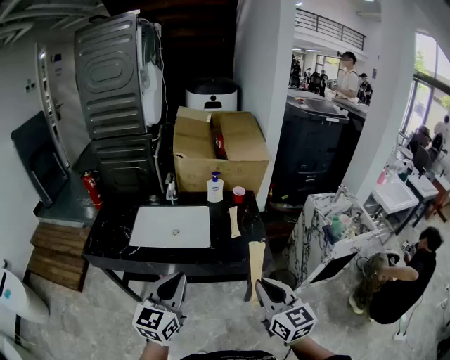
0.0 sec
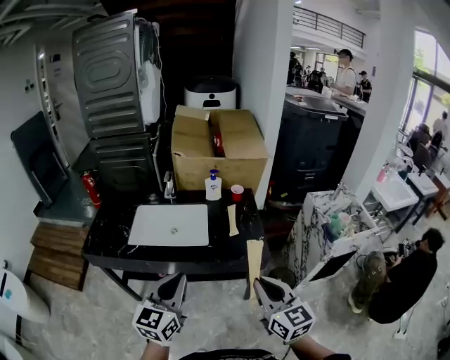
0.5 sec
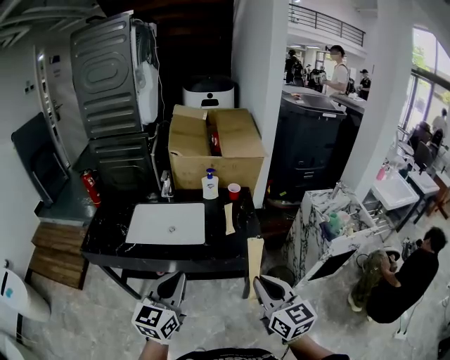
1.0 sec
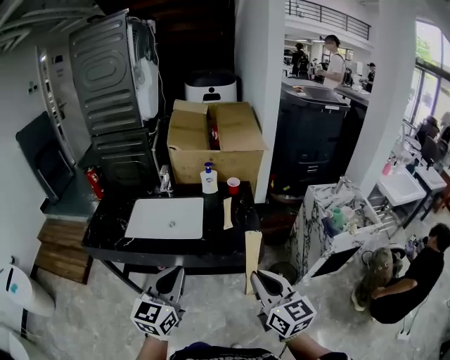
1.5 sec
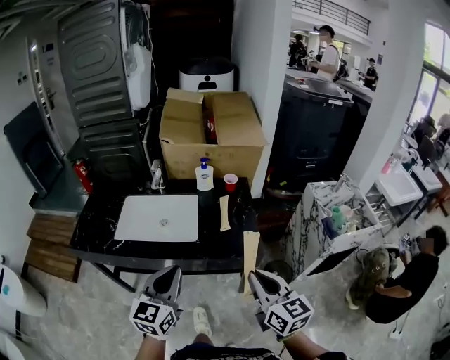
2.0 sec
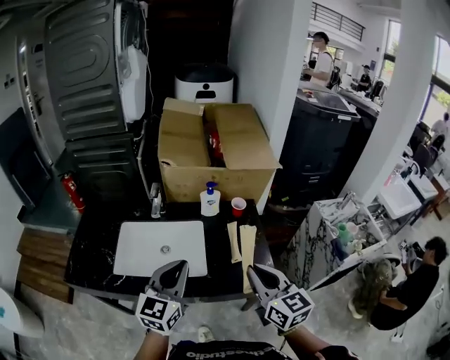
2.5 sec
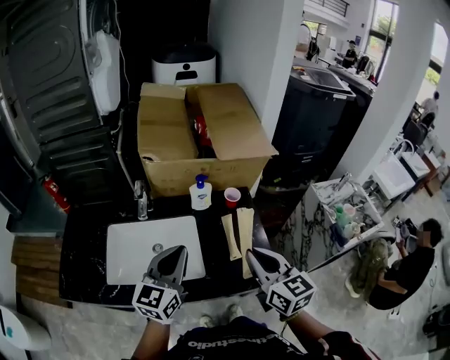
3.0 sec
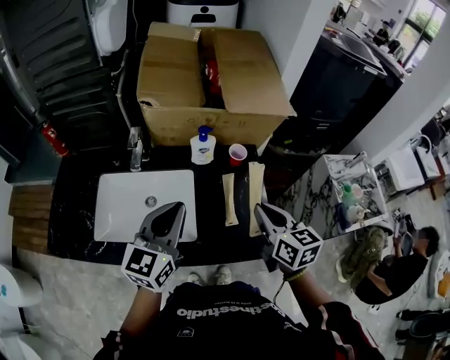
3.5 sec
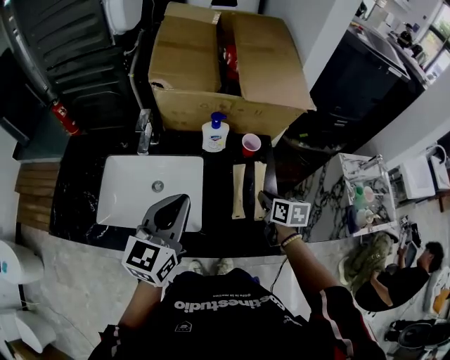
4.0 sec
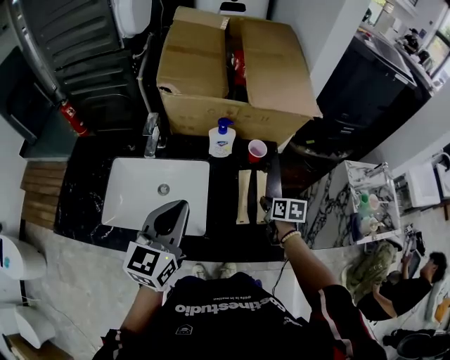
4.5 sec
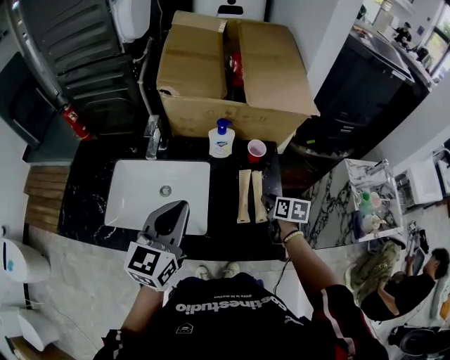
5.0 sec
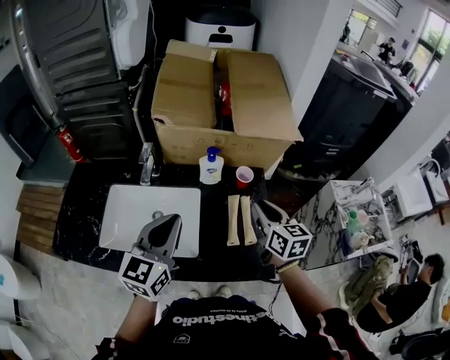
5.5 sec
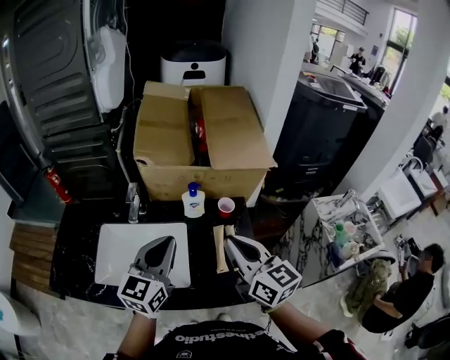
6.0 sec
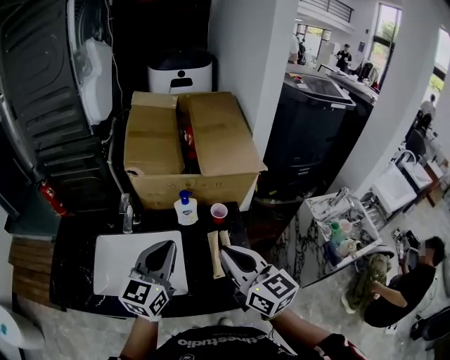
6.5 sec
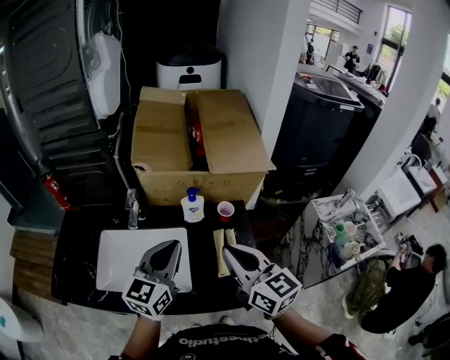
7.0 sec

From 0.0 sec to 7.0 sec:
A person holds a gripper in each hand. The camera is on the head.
From 0.0 sec to 2.0 sec: The right gripper shifts roughly 5 cm forward, while the left gripper moves forward and to the right, roughly 10 cm.
From 2.0 sec to 3.5 sec: The two grippers go approximately 30 cm forward.
From 3.5 sec to 5.0 sec: The right gripper shifts roughly 20 cm downward and forward, rotates about 30 degrees, and opens up.
From 5.0 sec to 7.0 sec: The right gripper travels upward by roughly 30 cm, tilts its fingers roughly 40 degrees upward, and closes. Meanwhile the left gripper shifts by roughly 5 cm.

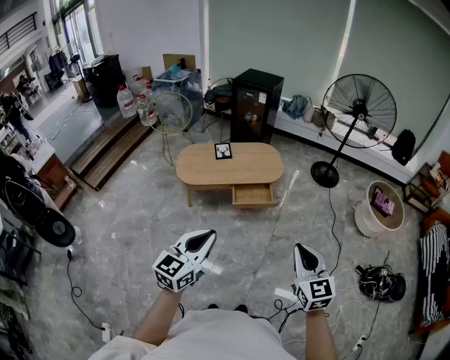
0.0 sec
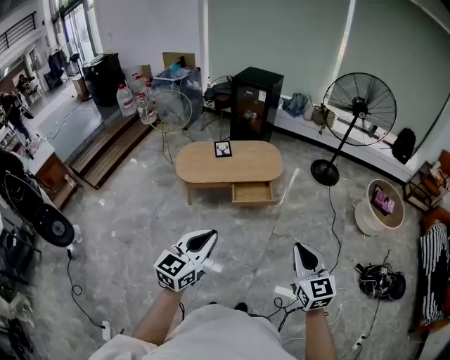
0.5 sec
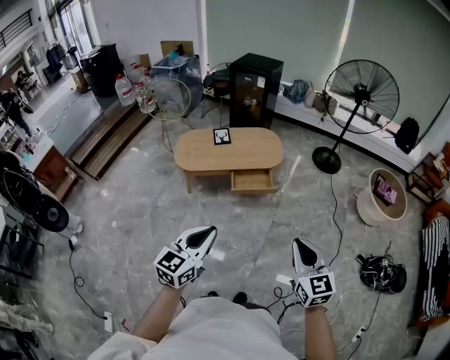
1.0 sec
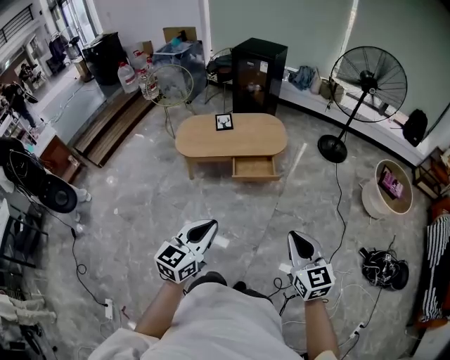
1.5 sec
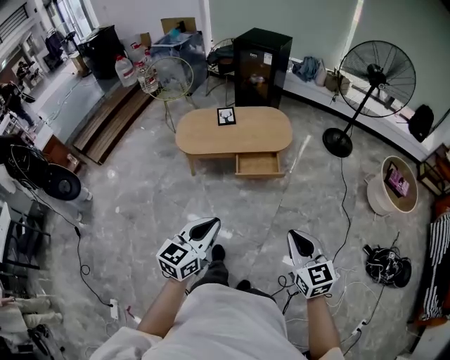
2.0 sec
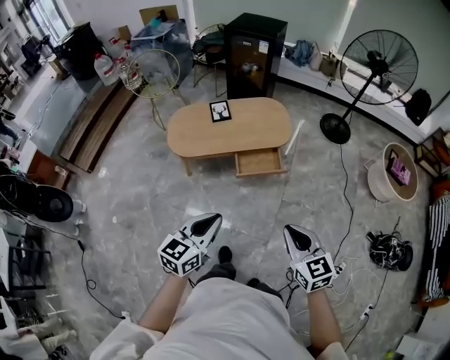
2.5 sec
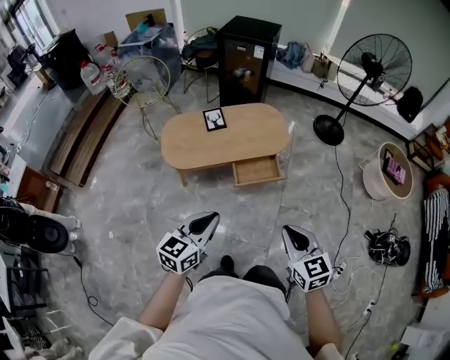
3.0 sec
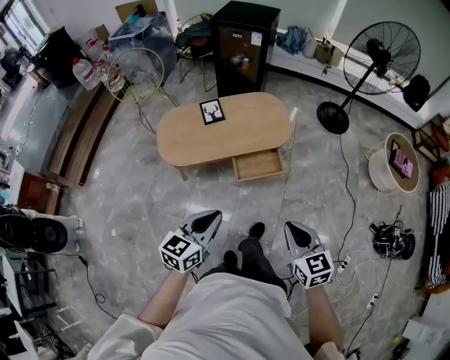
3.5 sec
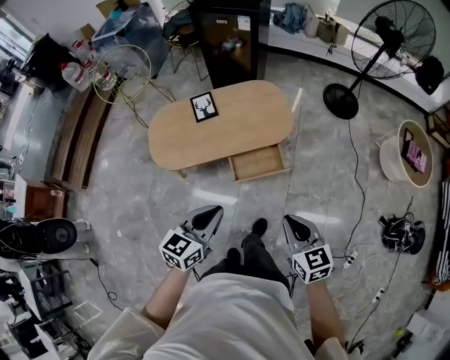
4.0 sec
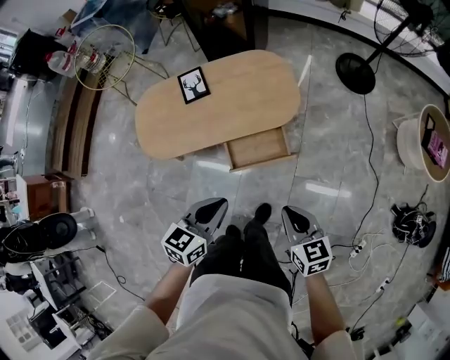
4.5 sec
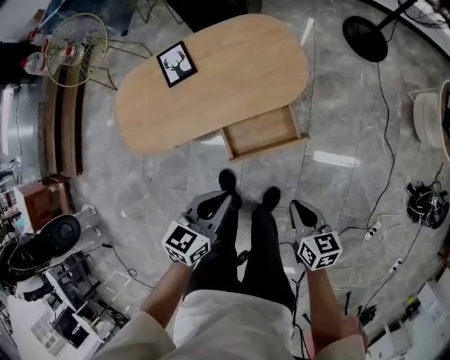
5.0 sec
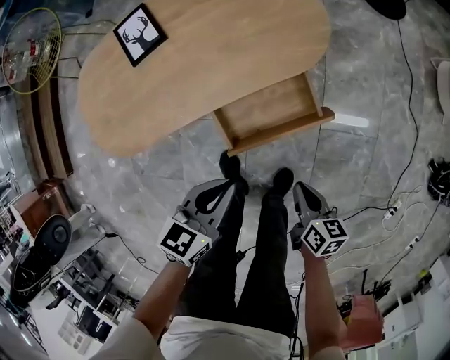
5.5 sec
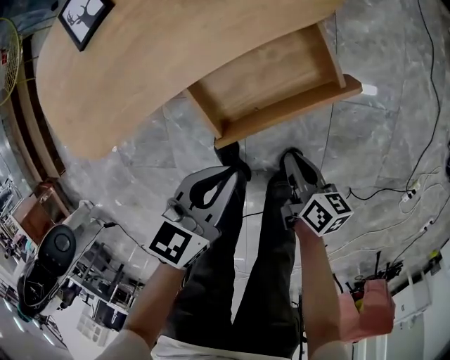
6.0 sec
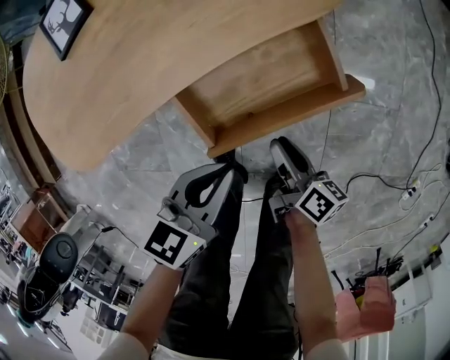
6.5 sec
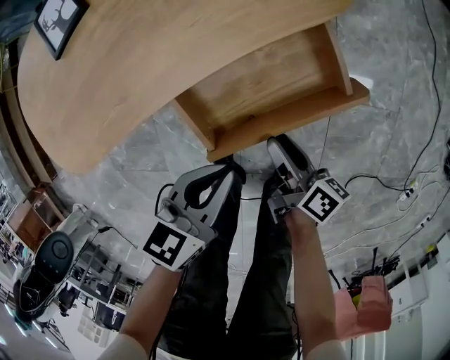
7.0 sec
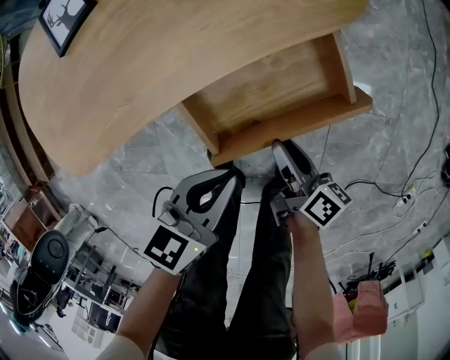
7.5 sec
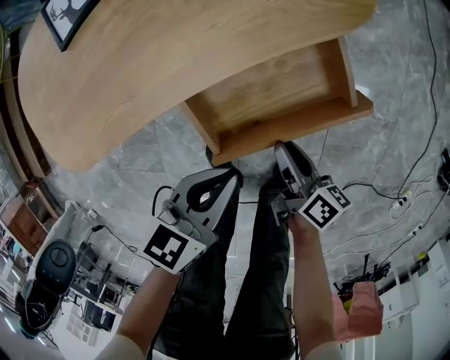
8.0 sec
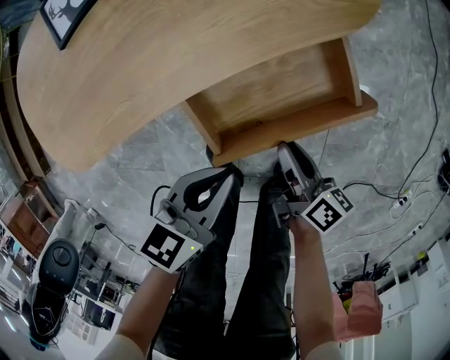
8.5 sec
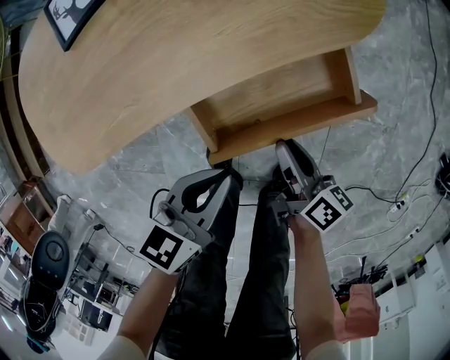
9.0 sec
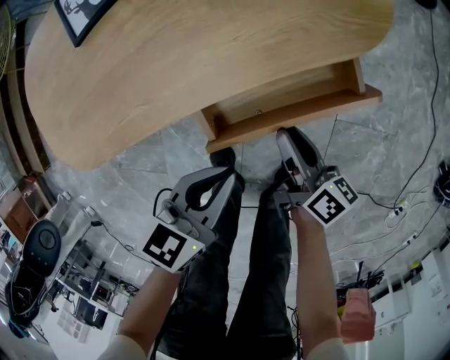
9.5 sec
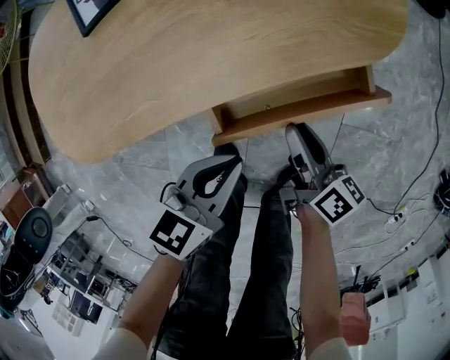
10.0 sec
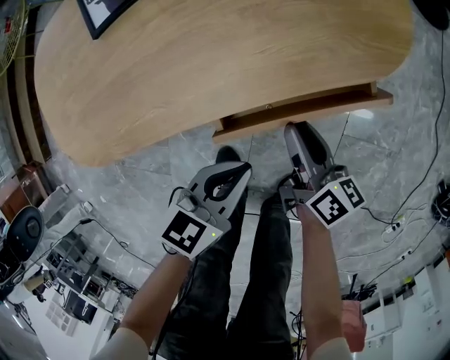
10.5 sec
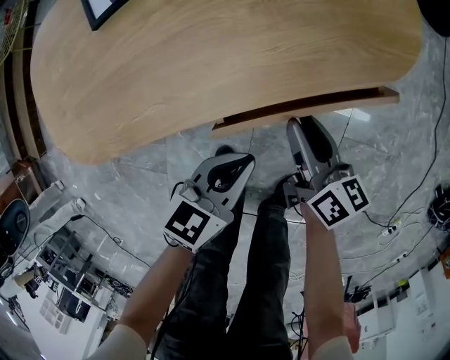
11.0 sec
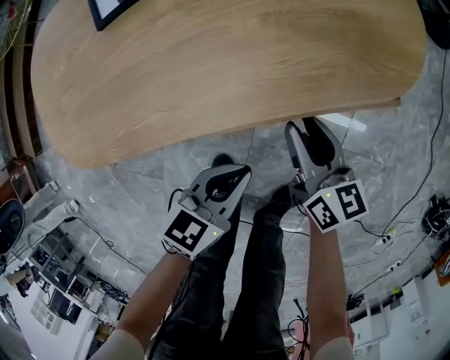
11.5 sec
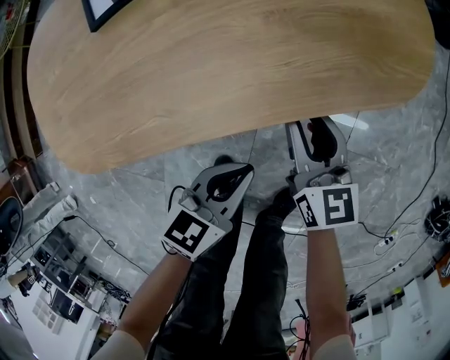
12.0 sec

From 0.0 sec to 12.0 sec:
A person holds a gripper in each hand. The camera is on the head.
From 0.0 sec to 2.0 sec: Both grippers travel together downward, roughly 10 cm.
From 2.0 sec to 4.0 sec: The grippers both shift forward and downward by approximately 35 cm.
From 4.0 sec to 6.0 sec: Both grippers move downward, approximately 50 cm. The left gripper swivels roughly 20 degrees; the right gripper twists roughly 50 degrees clockwise, seen from behind.
From 6.0 sec to 8.0 sec: The right gripper shifts some 5 cm forward.
From 8.0 sec to 10.0 sec: The left gripper changes place by approximately 5 cm. Meanwhile the right gripper heads forward, covering approximately 10 cm.
From 10.0 sec to 12.0 sec: The left gripper moves downward, approximately 5 cm. Meanwhile the right gripper travels forward and to the left by some 10 cm, and rotates around the line of its fingers by some 50 degrees, counterclockwise from behind.

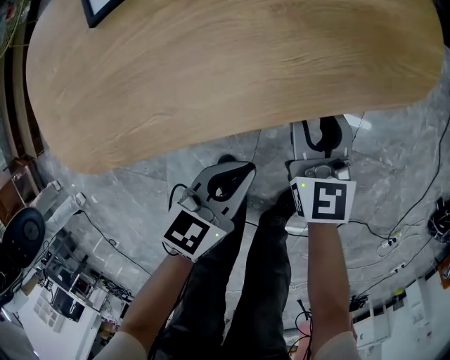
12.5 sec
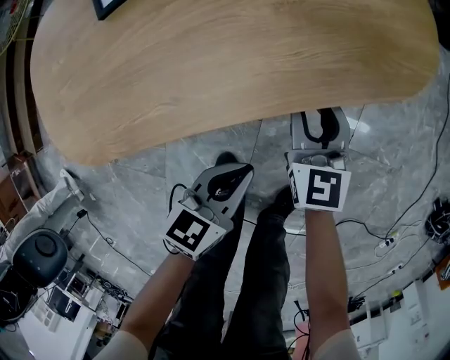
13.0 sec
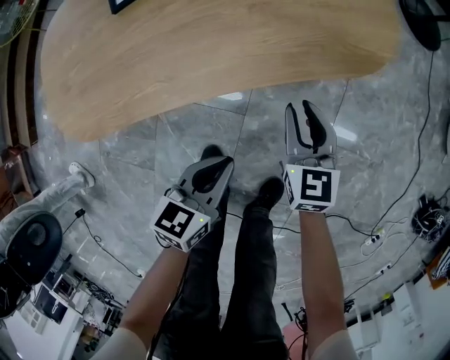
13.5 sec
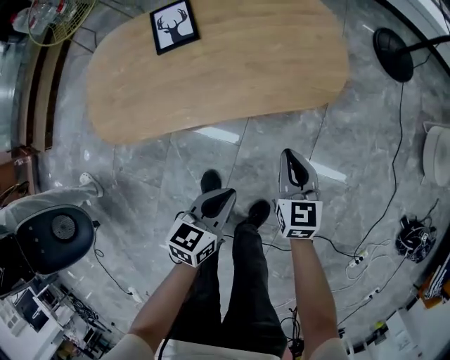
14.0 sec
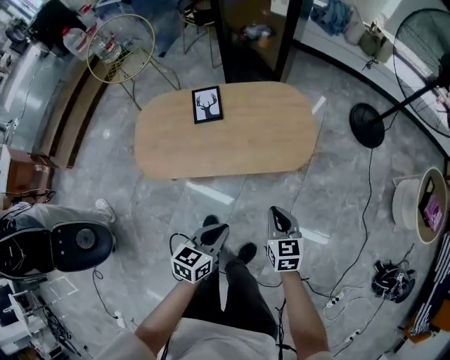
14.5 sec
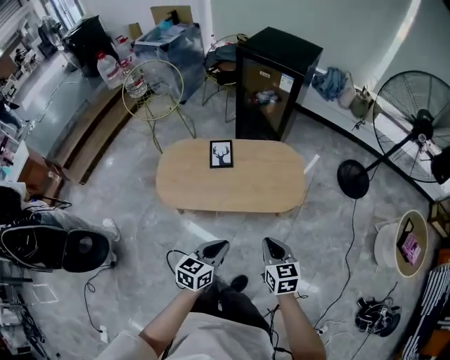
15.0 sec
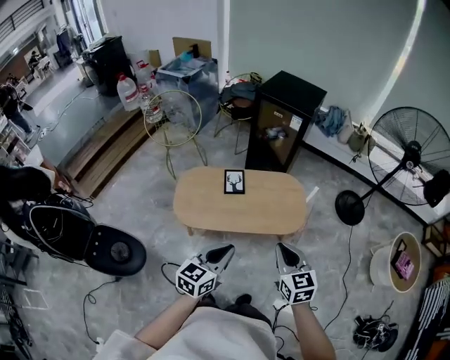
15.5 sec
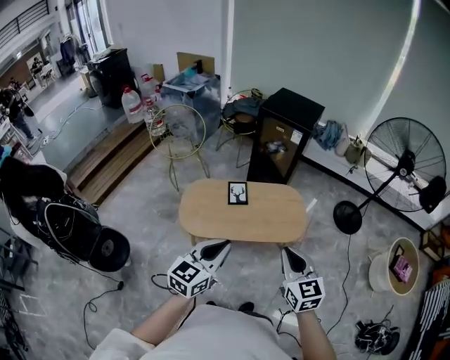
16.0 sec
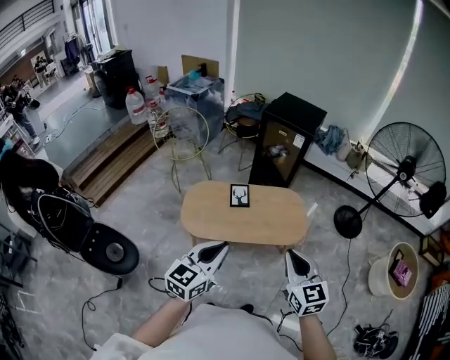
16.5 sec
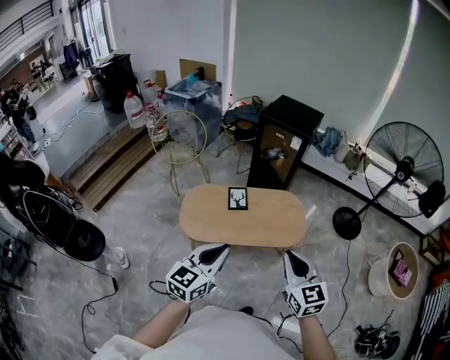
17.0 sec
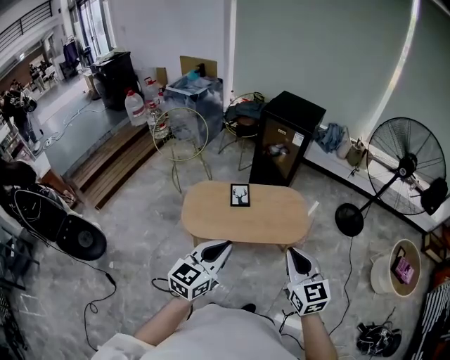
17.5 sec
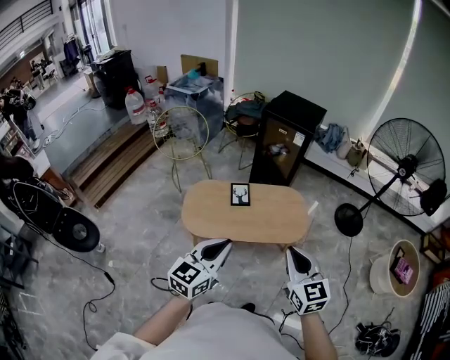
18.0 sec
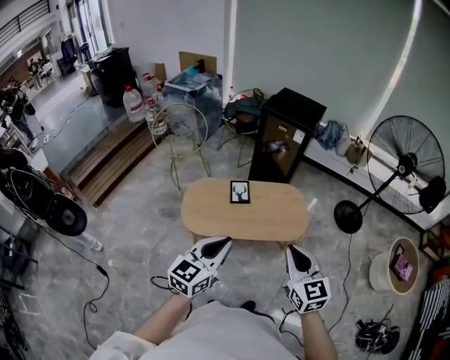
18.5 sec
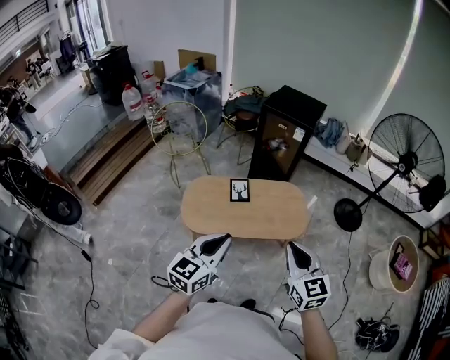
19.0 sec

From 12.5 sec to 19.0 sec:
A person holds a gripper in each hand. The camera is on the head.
From 12.5 sec to 14.5 sec: Both grippers travel together upward, some 40 cm. The right gripper closes up.
From 14.5 sec to 17.0 sec: Both grippers move upward, roughly 50 cm. The left gripper turns by about 30 degrees. Meanwhile the right gripper swivels approximately 30 degrees.
From 17.0 sec to 19.0 sec: The grippers move only a little.

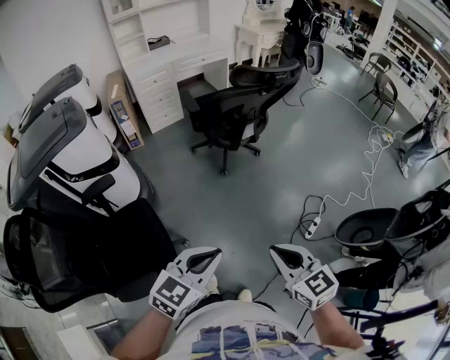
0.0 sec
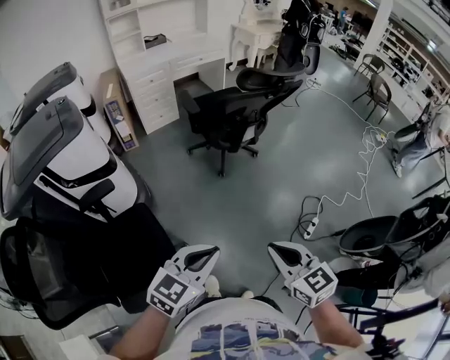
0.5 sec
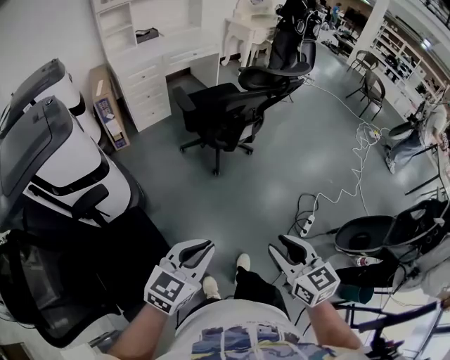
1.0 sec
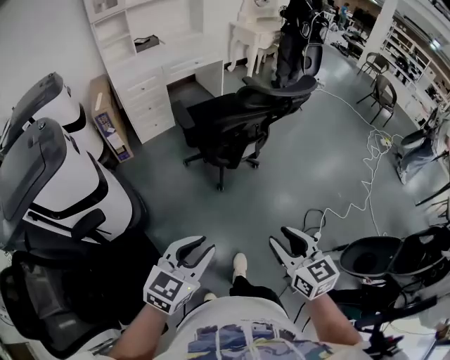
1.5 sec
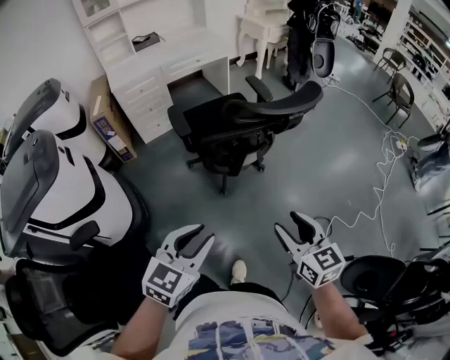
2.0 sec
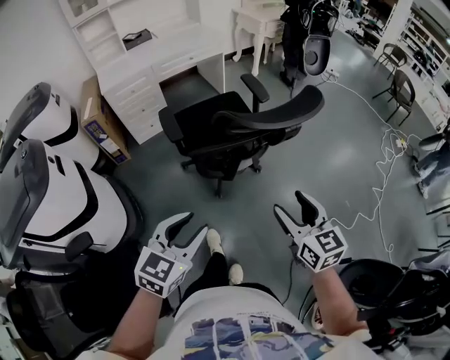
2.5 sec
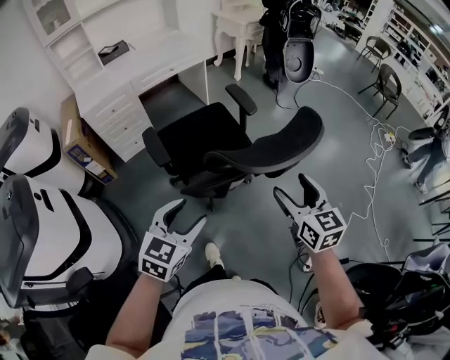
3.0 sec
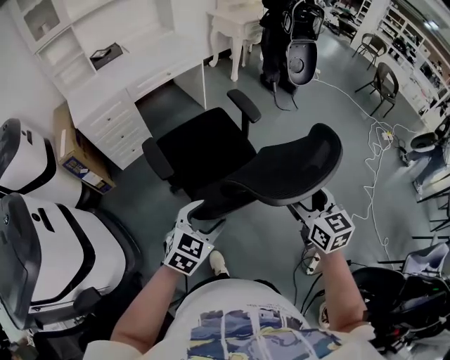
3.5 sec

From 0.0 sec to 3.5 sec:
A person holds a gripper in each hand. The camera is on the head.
From 0.0 sec to 2.0 sec: The two grippers go some 35 cm forward. The right gripper opens up.
From 2.0 sec to 3.5 sec: Both grippers travel together forward, some 30 cm. The left gripper opens. The right gripper opens up.
